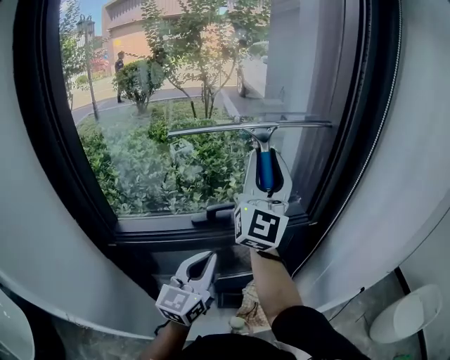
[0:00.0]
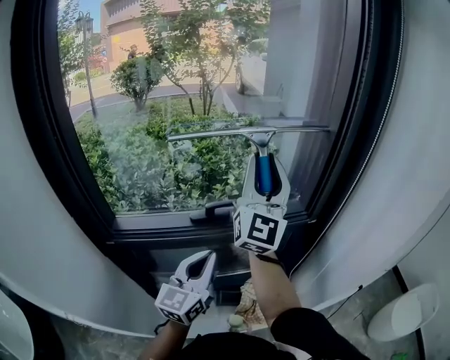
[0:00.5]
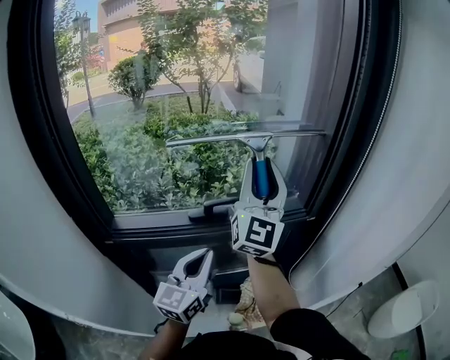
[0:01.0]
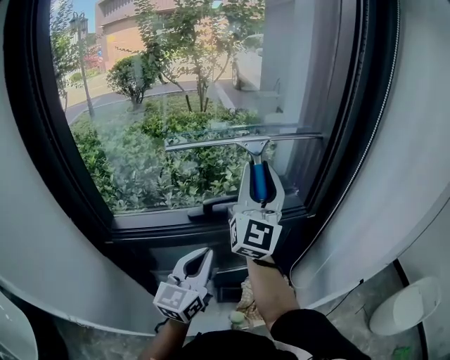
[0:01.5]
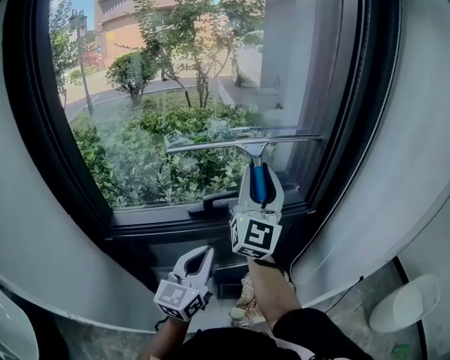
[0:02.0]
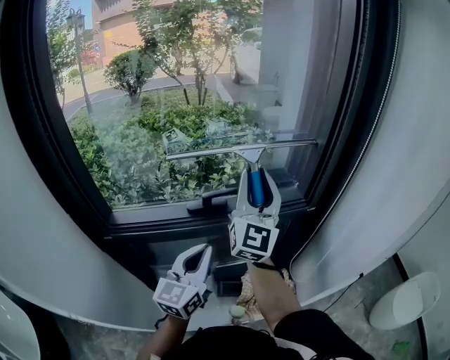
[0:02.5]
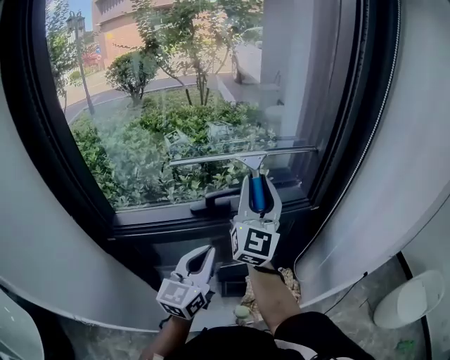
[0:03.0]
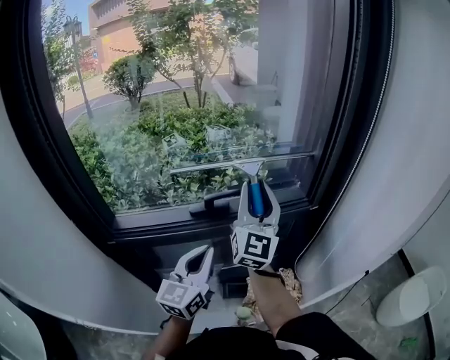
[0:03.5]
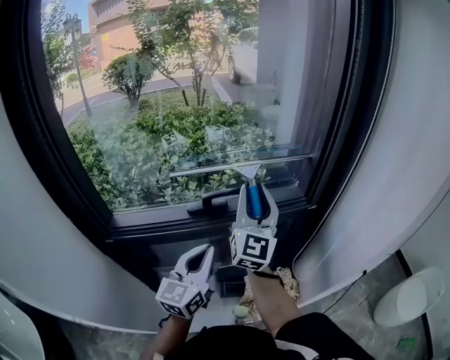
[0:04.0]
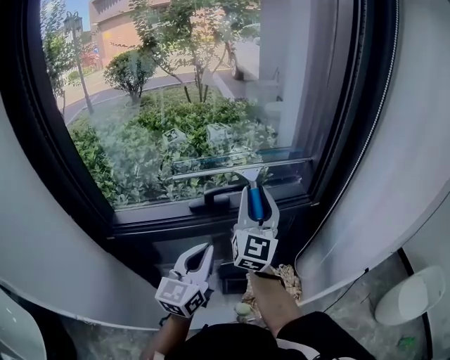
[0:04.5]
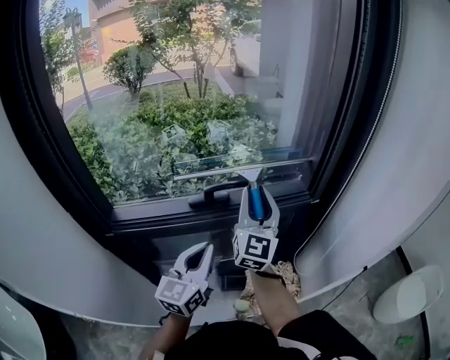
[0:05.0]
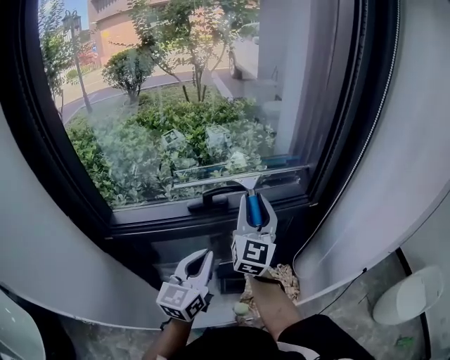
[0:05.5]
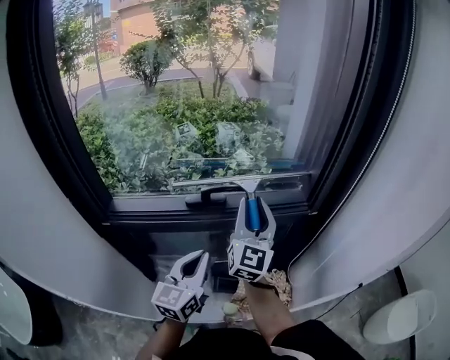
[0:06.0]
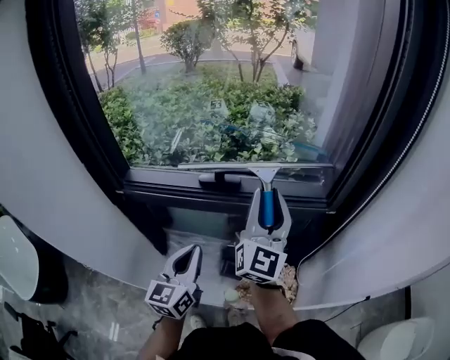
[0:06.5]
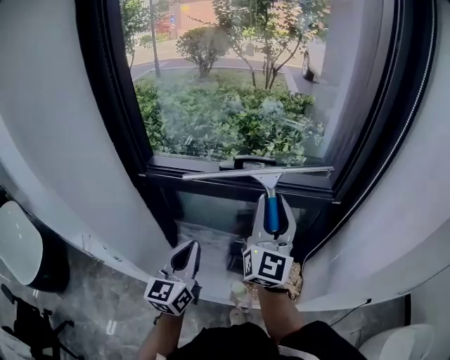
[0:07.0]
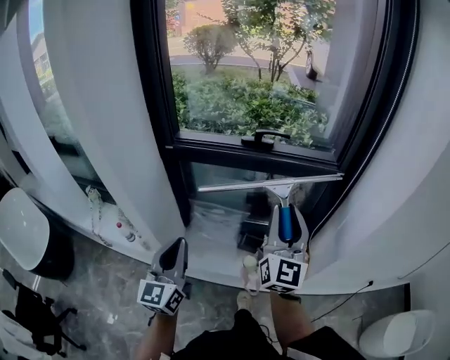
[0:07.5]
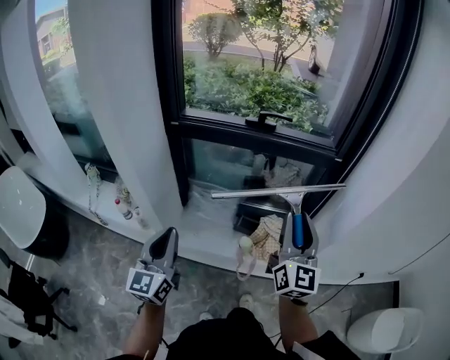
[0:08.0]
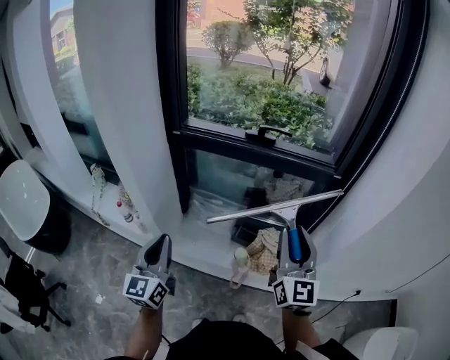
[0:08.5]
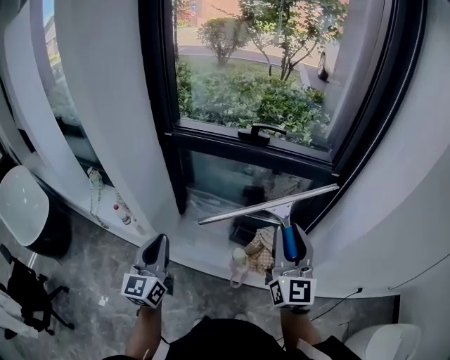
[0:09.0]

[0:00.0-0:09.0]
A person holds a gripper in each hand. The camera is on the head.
0:00.0 to 0:02.0: The right gripper travels downward by roughly 5 cm.
0:02.0 to 0:04.5: The right gripper moves downward, some 10 cm.
0:04.5 to 0:07.0: Both grippers travel together backward, roughly 15 cm. The left gripper changes its angle by some 30 degrees.
0:07.0 to 0:09.0: The left gripper is displaced backward and to the left by roughly 20 cm; the right gripper heads backward, covering some 20 cm.

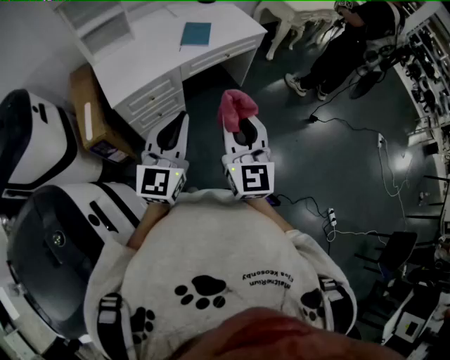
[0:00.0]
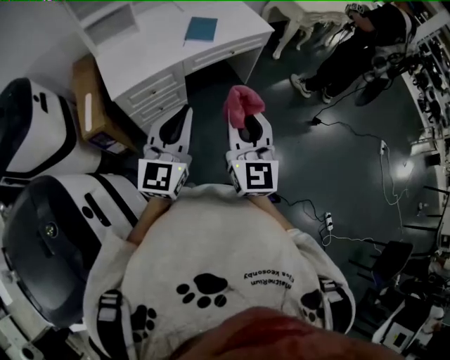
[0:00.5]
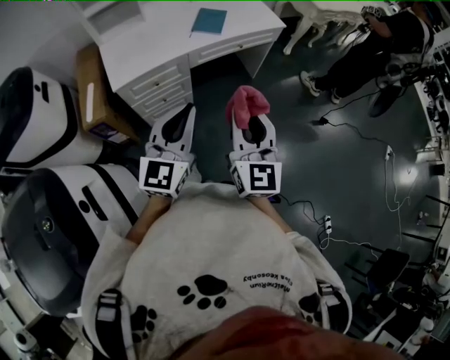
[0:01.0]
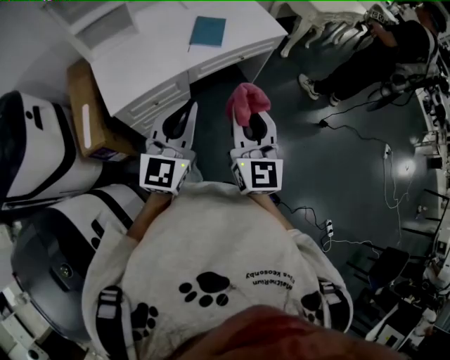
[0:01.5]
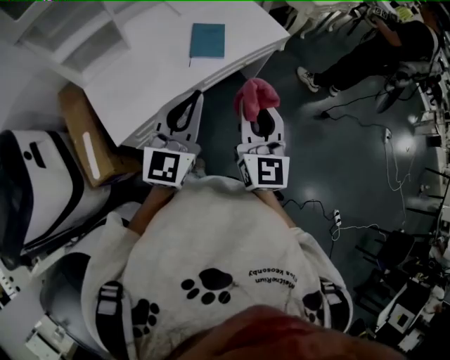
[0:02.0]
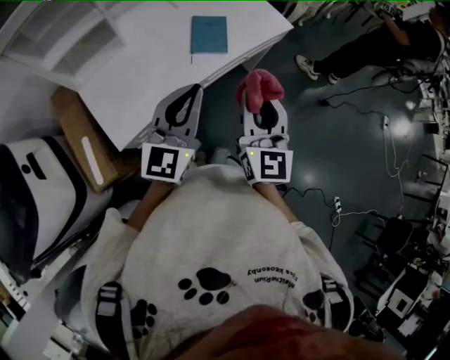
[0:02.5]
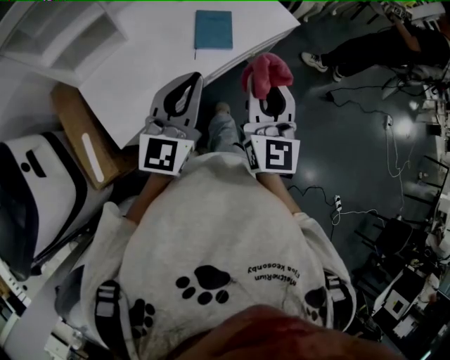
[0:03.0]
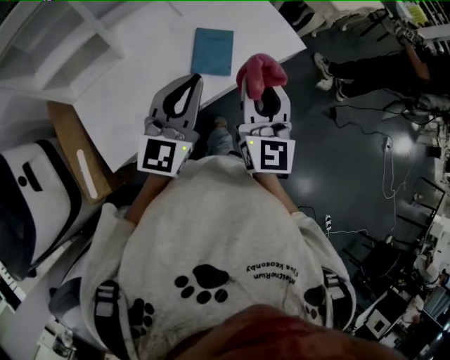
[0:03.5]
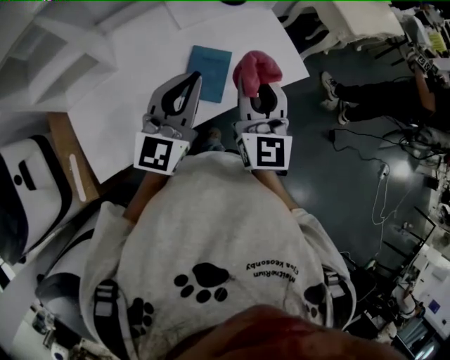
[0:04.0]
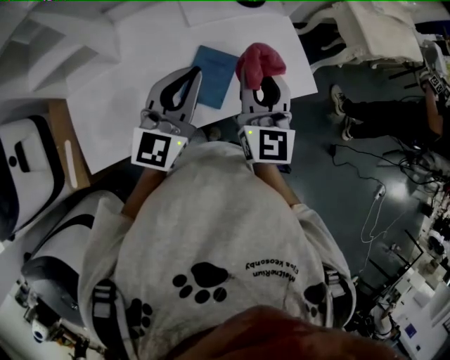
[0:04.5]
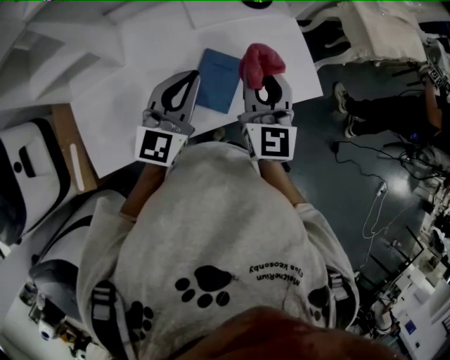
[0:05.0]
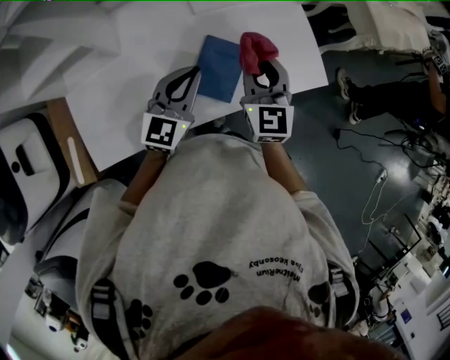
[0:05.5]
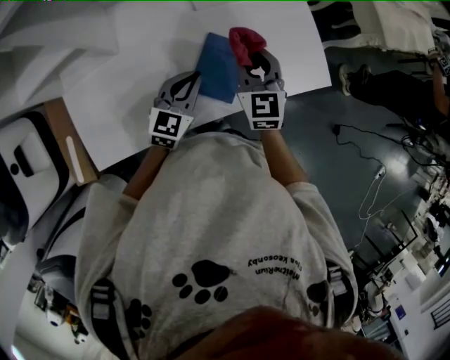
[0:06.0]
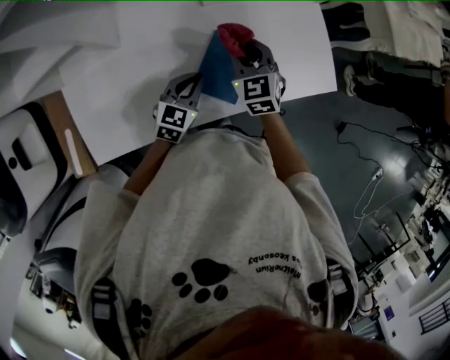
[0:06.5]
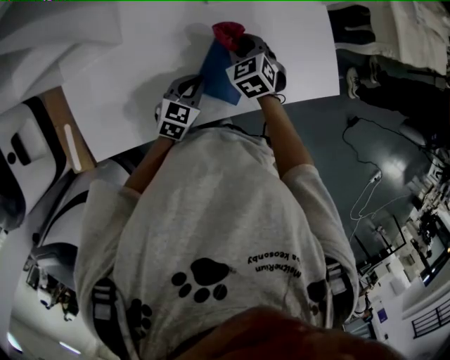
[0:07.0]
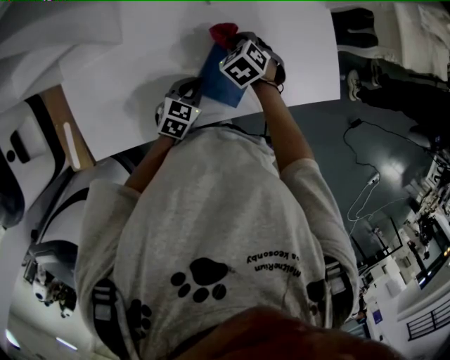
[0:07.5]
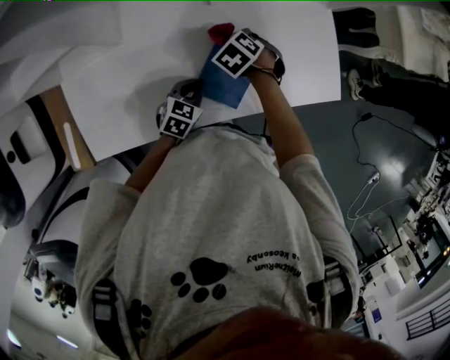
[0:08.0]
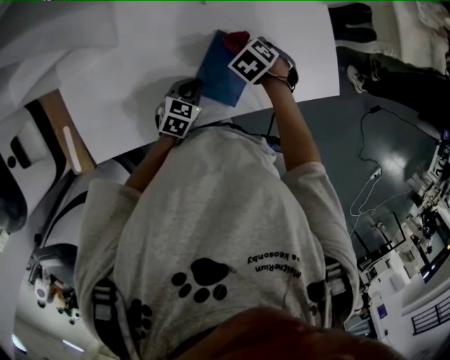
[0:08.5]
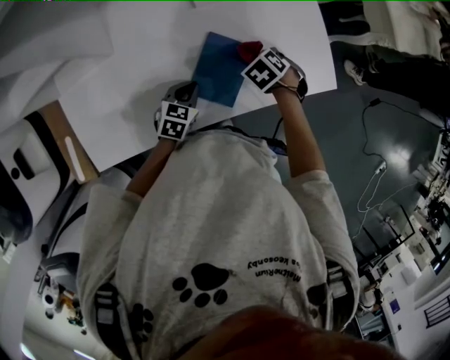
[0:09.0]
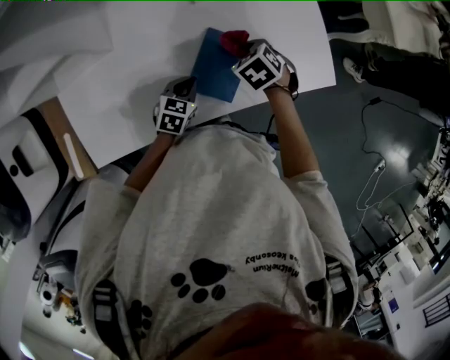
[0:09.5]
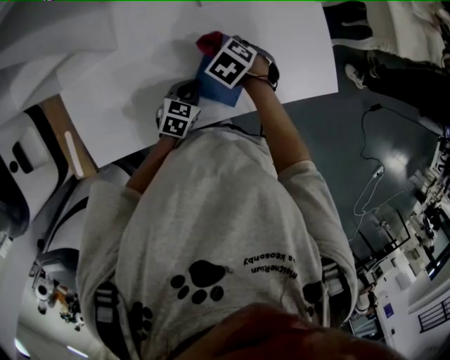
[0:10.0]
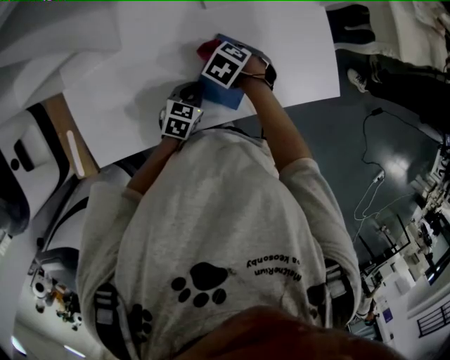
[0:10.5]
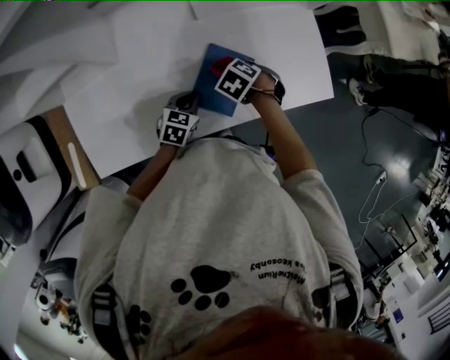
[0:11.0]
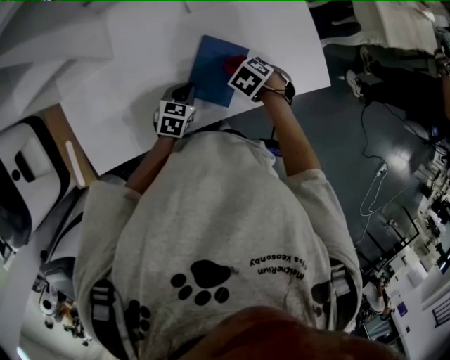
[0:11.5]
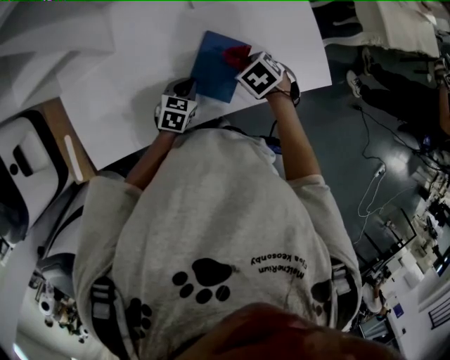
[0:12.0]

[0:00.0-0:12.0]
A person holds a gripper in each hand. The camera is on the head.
0:00.0 to 0:02.0: The grippers both shift forward by some 25 cm.
0:02.0 to 0:04.0: Both grippers move forward, some 30 cm.
0:04.0 to 0:06.0: The right gripper heads downward, forward and to the left, covering roughly 20 cm, and rotates roughly 30 degrees. The left gripper is displaced downward by approximately 20 cm, and turns by roughly 30 degrees.
0:06.0 to 0:08.0: Both grippers travel together downward, some 15 cm. The left gripper turns by some 30 degrees. The right gripper tips its fingers downward by about 60 degrees.
0:10.0 to 0:12.0: The right gripper shifts by approximately 10 cm.

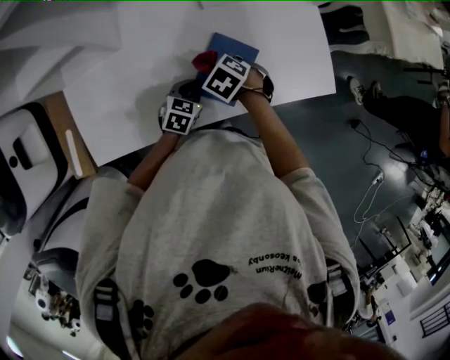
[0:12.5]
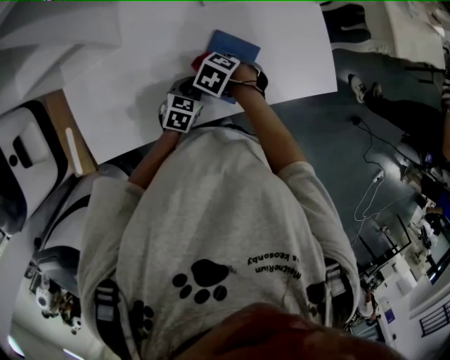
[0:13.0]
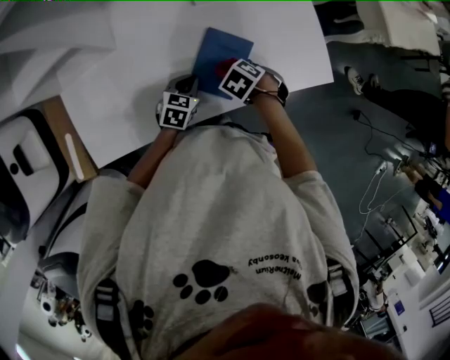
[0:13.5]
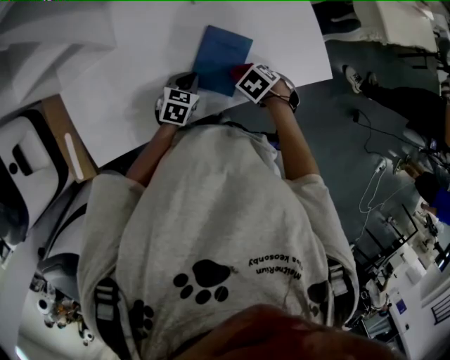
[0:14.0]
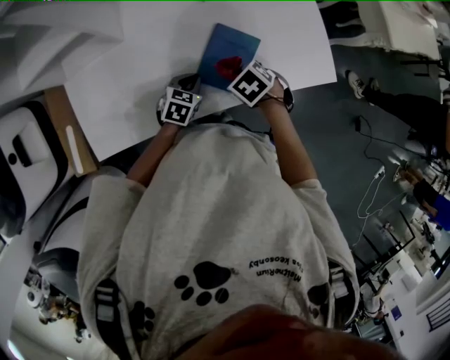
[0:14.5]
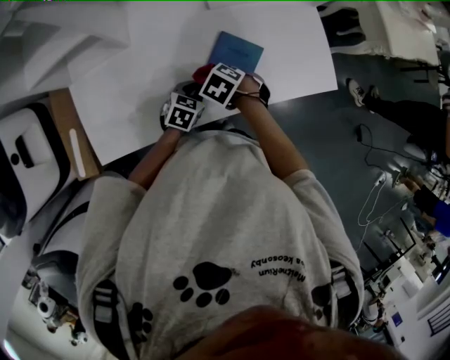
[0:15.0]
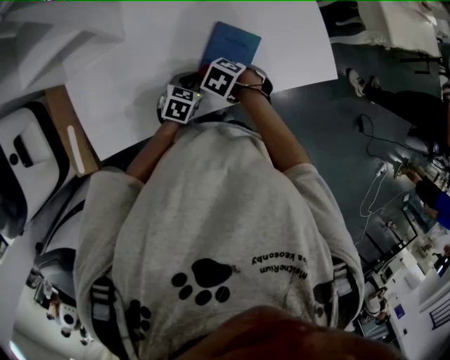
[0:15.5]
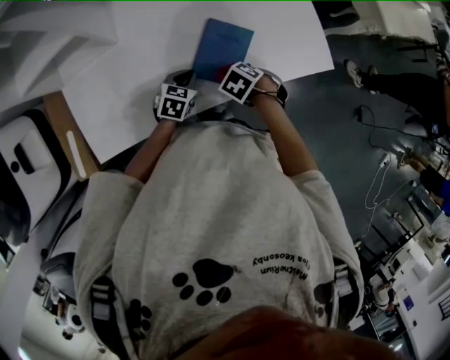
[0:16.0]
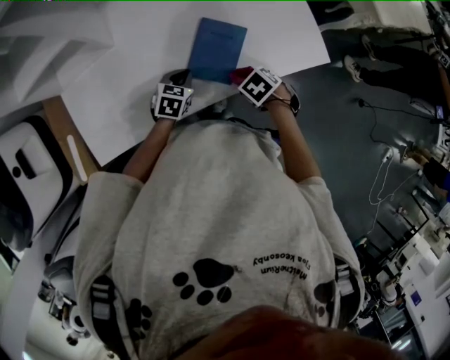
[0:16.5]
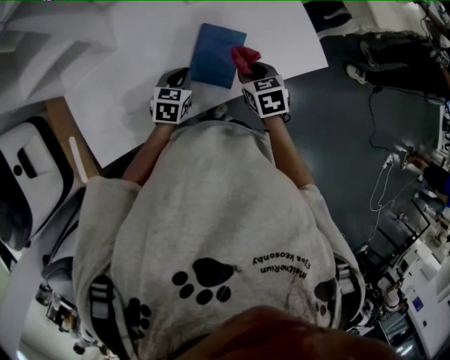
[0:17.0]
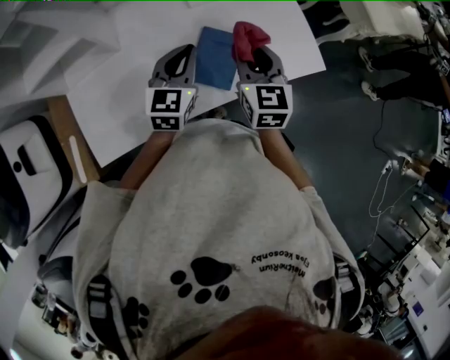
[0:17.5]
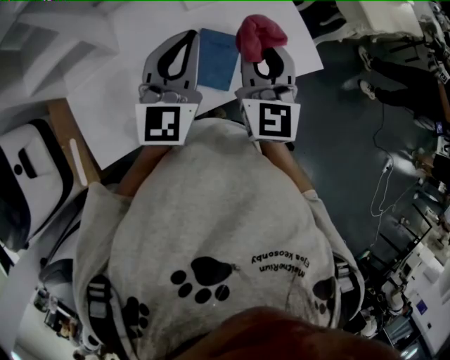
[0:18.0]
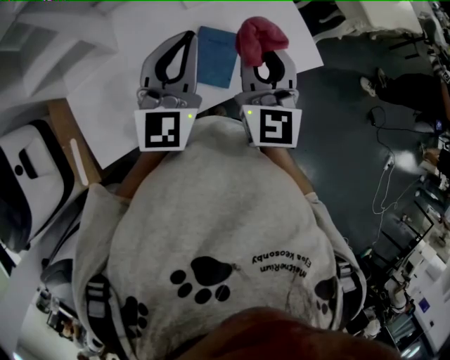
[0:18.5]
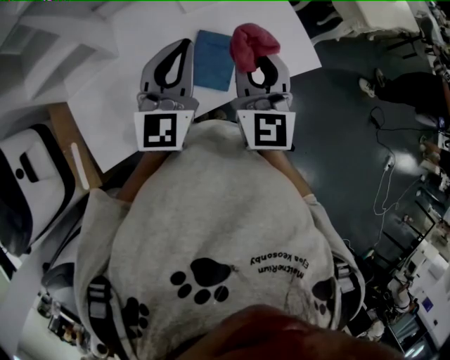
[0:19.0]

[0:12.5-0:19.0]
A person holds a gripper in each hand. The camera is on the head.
0:14.5 to 0:17.0: The right gripper rotates roughly 40 degrees.
0:17.0 to 0:19.0: Both grippers travel together upward, some 25 cm. The left gripper points its fingers about 40 degrees further upward. Meanwhile the right gripper tilts its fingers about 50 degrees upward.
